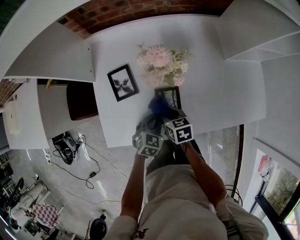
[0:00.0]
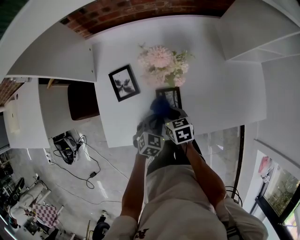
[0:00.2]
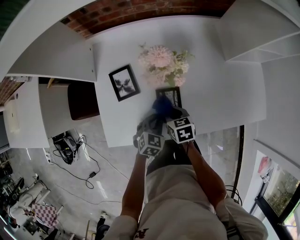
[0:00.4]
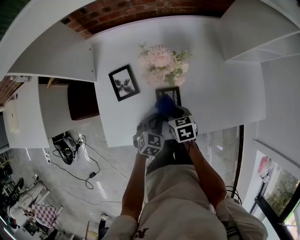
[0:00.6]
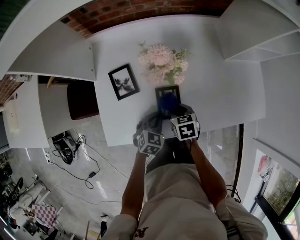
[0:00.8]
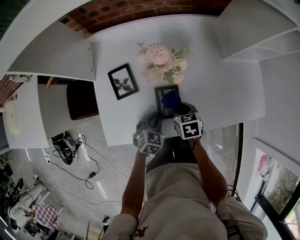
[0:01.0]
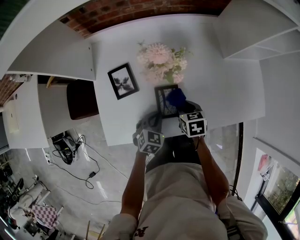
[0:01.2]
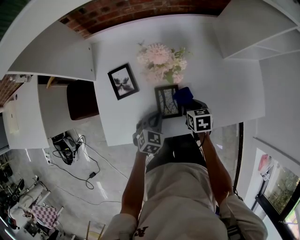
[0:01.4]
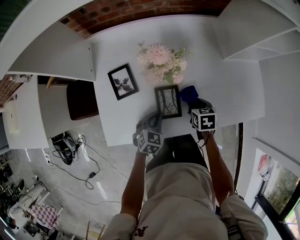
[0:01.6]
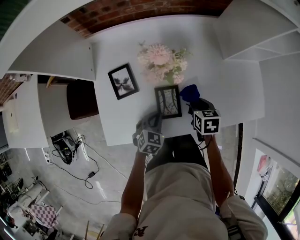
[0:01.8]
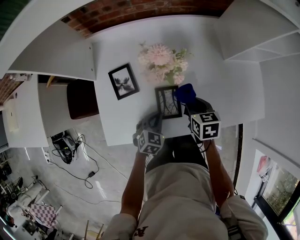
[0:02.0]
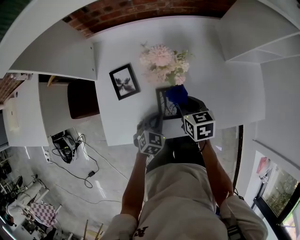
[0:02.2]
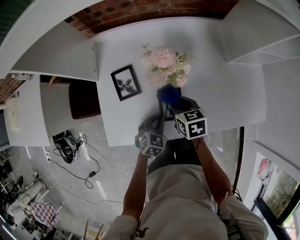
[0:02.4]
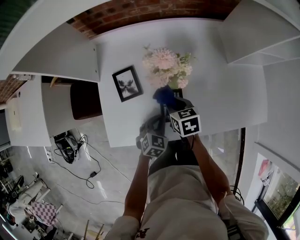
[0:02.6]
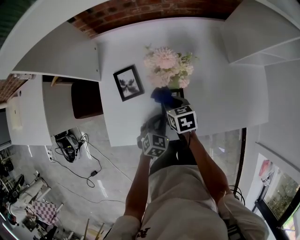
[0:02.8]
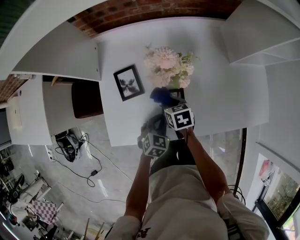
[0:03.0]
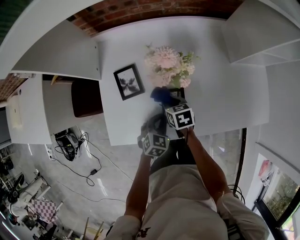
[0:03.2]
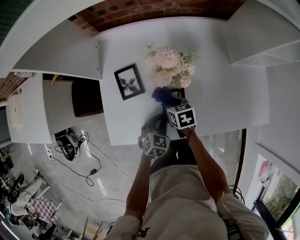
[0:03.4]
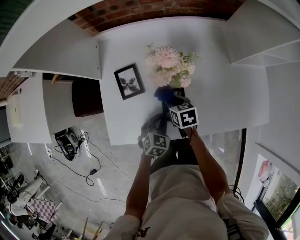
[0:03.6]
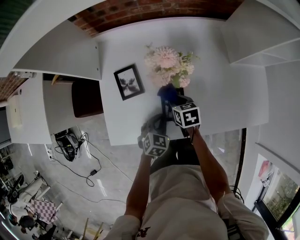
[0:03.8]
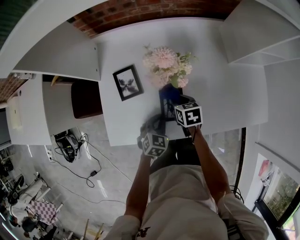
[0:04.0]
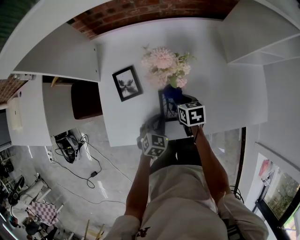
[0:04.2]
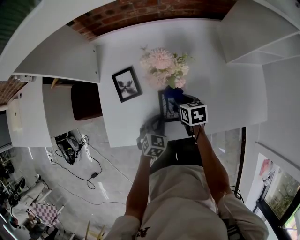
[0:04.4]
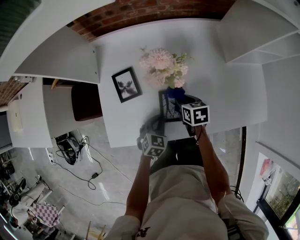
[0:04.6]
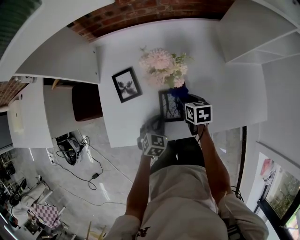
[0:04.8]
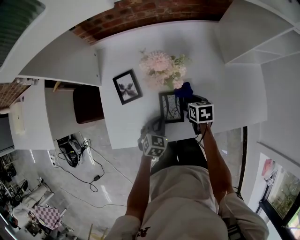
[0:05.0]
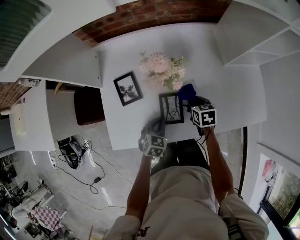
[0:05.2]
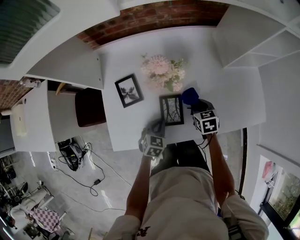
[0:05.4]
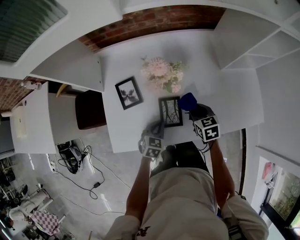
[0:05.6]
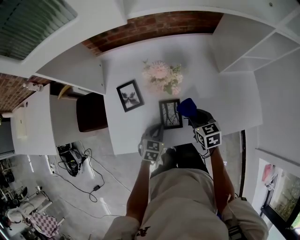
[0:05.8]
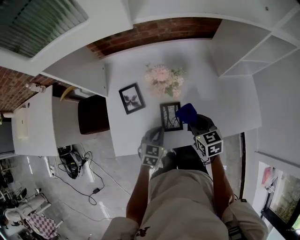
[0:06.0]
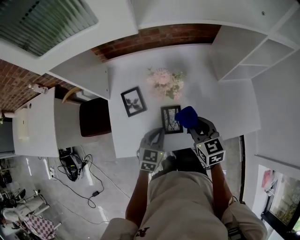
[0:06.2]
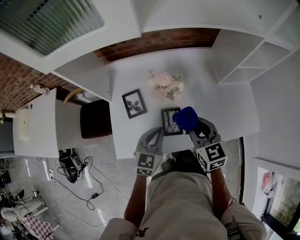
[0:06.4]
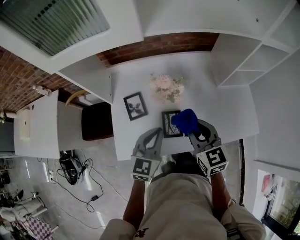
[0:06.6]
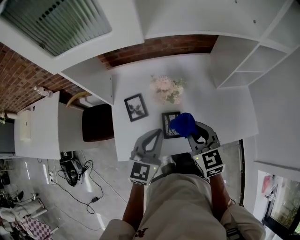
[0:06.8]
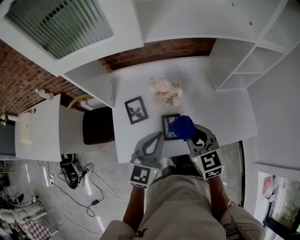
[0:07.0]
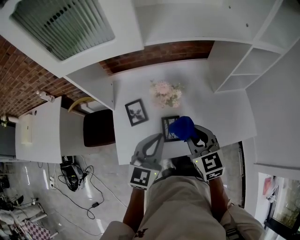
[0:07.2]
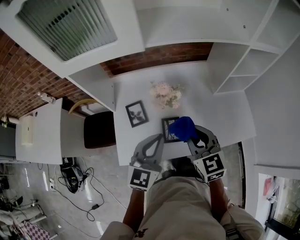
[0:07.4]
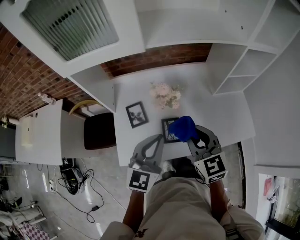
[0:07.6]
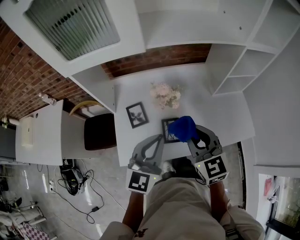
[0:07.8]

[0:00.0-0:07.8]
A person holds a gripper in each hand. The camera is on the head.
0:00.0 to 0:01.6: The right gripper shifts about 15 cm to the right.
0:01.6 to 0:03.2: The right gripper is displaced to the left by roughly 15 cm.
0:03.2 to 0:04.6: The right gripper heads to the right, covering approximately 10 cm.
0:04.6 to 0:06.2: The left gripper moves upward, approximately 10 cm; the right gripper heads upward, covering roughly 20 cm, and rotates roughly 30 degrees.
0:06.2 to 0:07.8: The grippers both shift upward by about 20 cm. The left gripper rotates about 30 degrees.

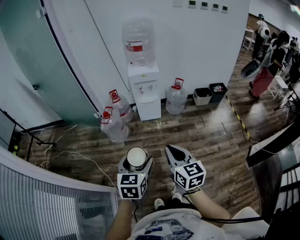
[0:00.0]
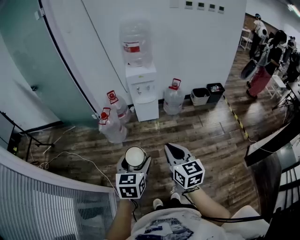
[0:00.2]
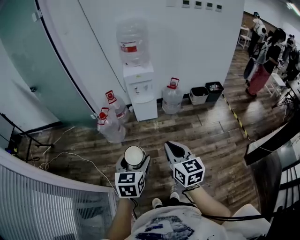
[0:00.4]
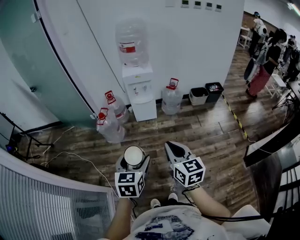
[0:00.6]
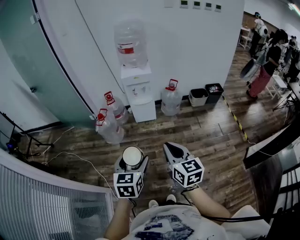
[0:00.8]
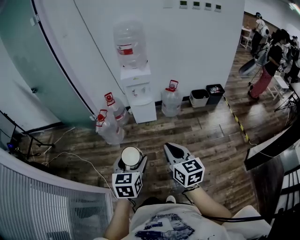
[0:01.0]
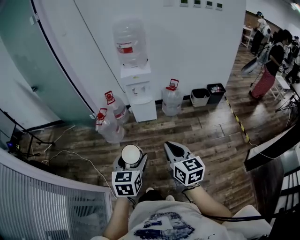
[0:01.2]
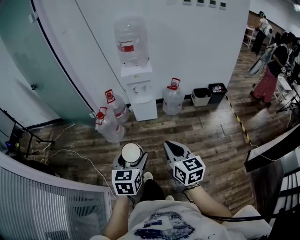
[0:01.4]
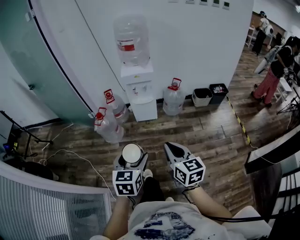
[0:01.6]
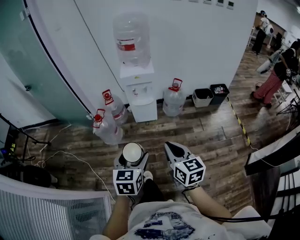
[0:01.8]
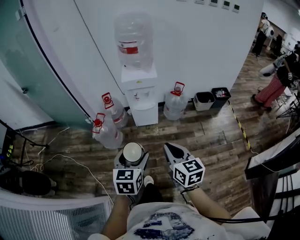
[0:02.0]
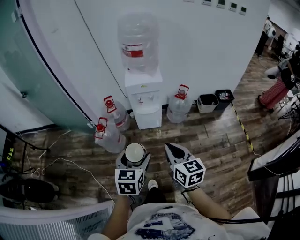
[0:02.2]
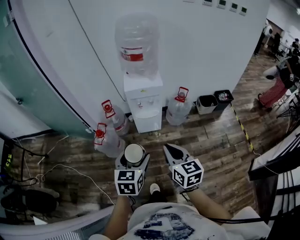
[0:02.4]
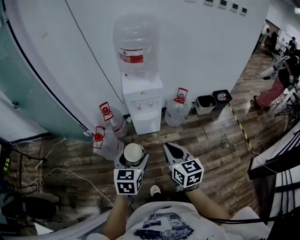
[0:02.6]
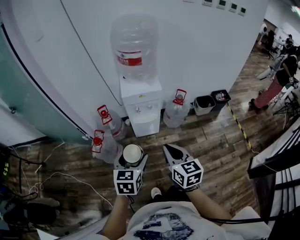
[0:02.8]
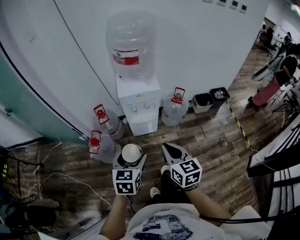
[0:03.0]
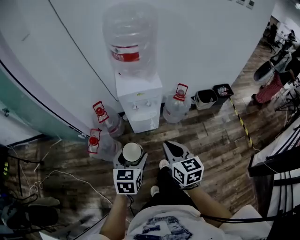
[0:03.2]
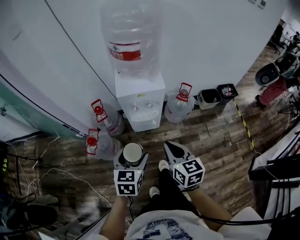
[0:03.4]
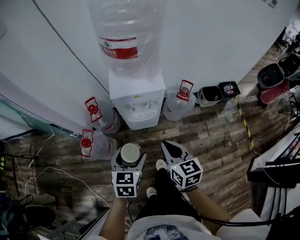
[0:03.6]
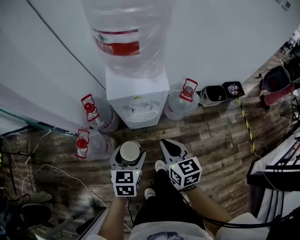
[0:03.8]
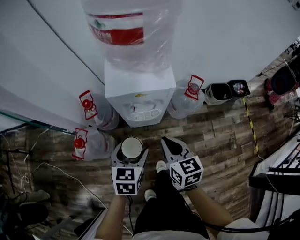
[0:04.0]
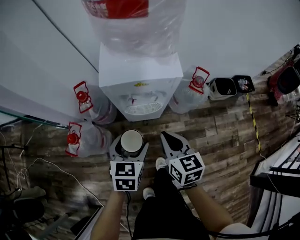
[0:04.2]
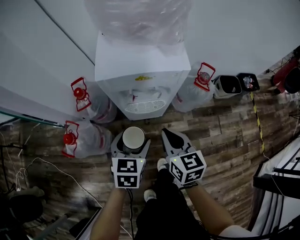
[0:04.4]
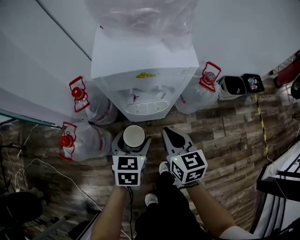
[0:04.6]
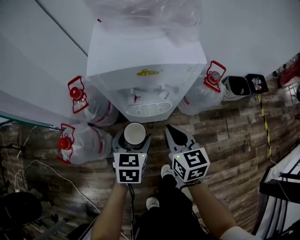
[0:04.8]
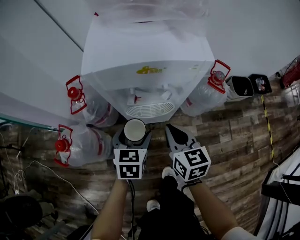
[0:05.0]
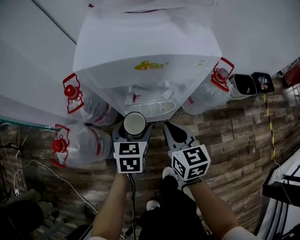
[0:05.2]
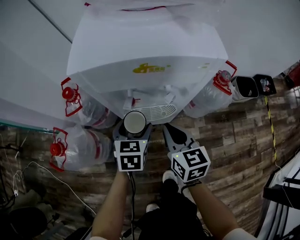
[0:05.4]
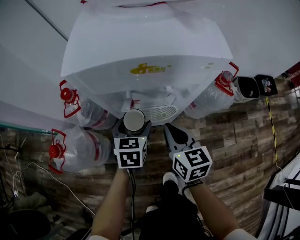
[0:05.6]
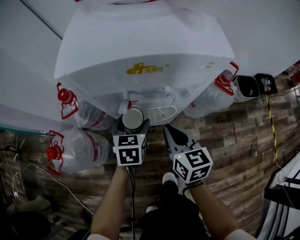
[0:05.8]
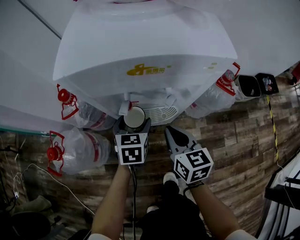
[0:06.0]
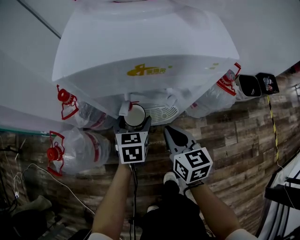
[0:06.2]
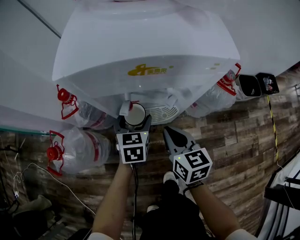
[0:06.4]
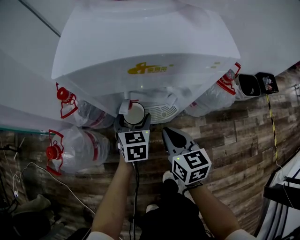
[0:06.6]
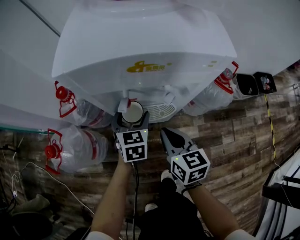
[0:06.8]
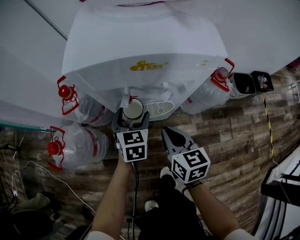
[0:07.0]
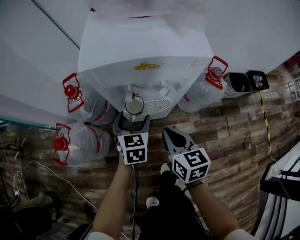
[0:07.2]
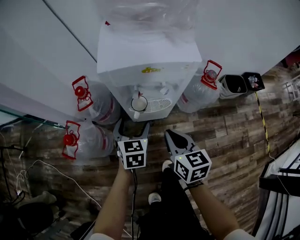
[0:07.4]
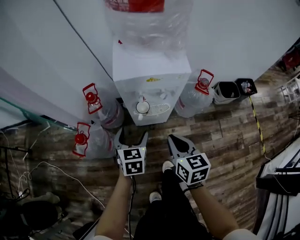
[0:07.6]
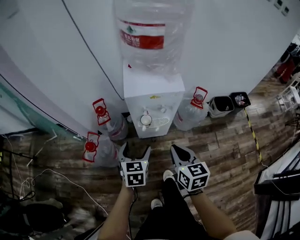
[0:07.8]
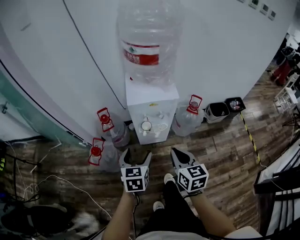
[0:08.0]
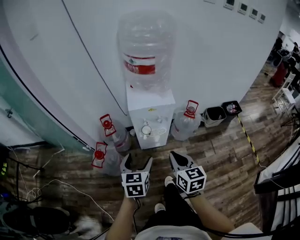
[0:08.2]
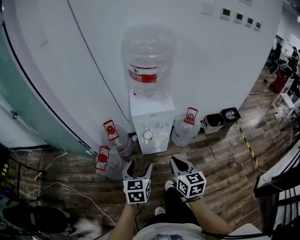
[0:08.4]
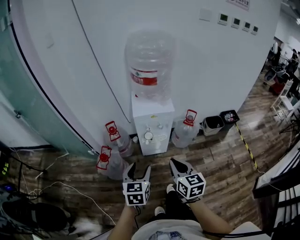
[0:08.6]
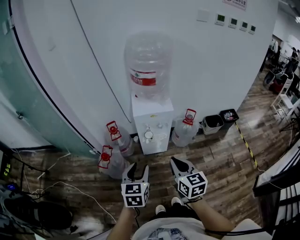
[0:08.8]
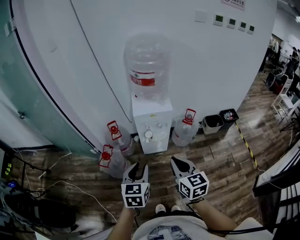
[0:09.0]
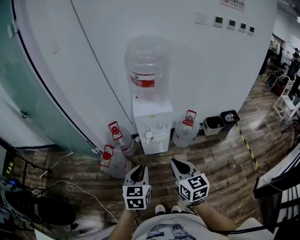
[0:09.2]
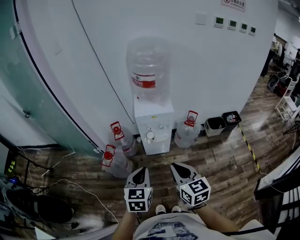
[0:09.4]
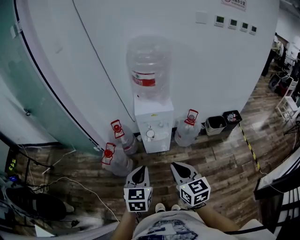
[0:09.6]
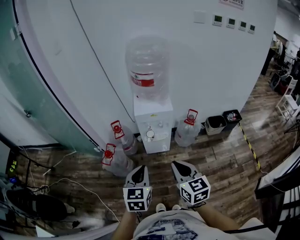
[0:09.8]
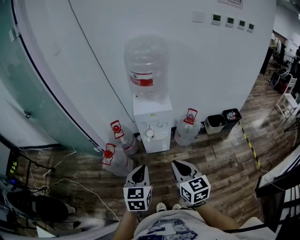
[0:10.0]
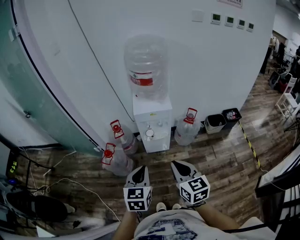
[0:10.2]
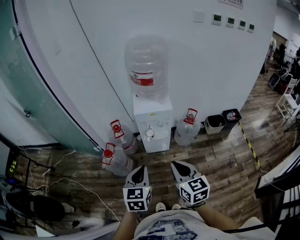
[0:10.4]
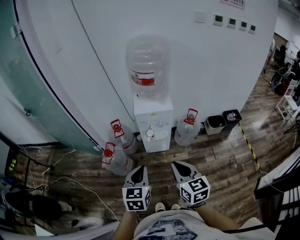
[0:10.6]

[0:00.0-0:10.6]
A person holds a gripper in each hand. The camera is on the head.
0:00.0 to 0:01.6: The right gripper moves to the right and forward, about 10 cm; the left gripper heads forward and to the right, covering approximately 10 cm.
0:01.6 to 0:03.0: Both grippers move forward, roughly 35 cm.
0:03.0 to 0:04.6: Both grippers move downward and forward, some 40 cm.
0:04.6 to 0:06.0: The two grippers go about 20 cm downward and forward.
0:06.0 to 0:07.6: The two grippers go some 25 cm upward and backward.
0:07.6 to 0:09.0: The grippers both shift upward and backward by approximately 40 cm. The left gripper closes its fingers.
0:09.0 to 0:10.6: The left gripper shifts by about 5 cm.

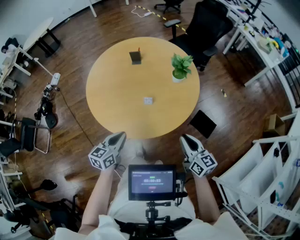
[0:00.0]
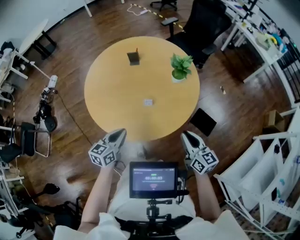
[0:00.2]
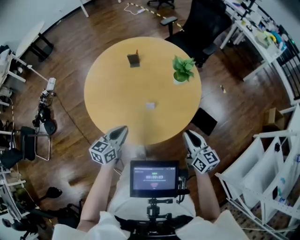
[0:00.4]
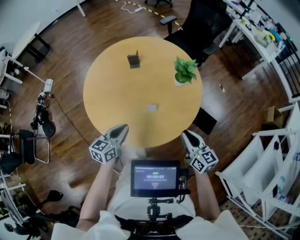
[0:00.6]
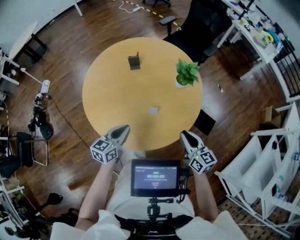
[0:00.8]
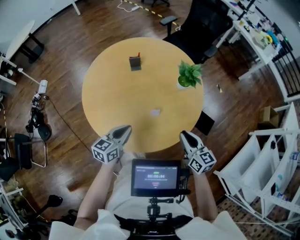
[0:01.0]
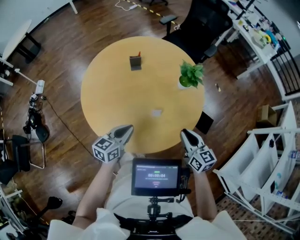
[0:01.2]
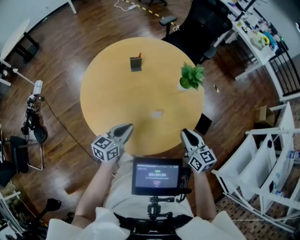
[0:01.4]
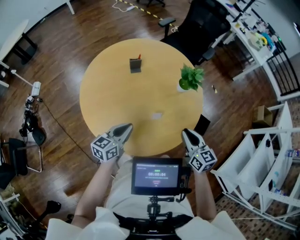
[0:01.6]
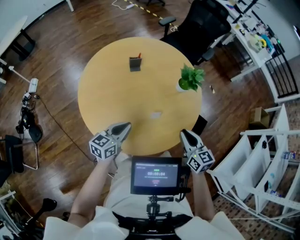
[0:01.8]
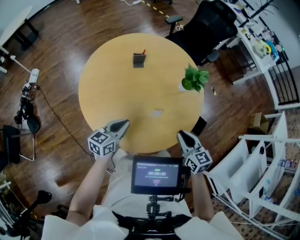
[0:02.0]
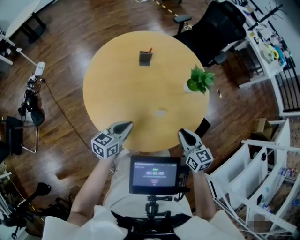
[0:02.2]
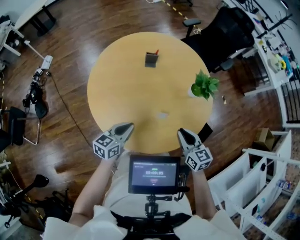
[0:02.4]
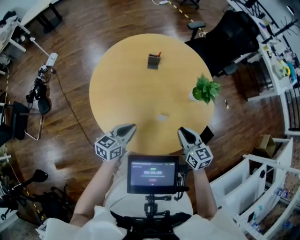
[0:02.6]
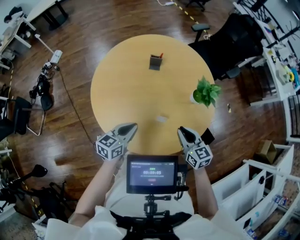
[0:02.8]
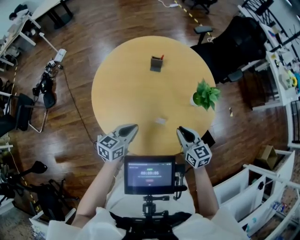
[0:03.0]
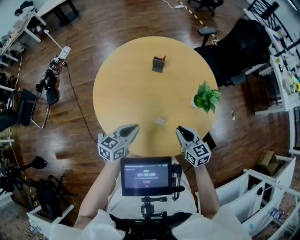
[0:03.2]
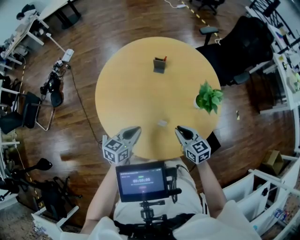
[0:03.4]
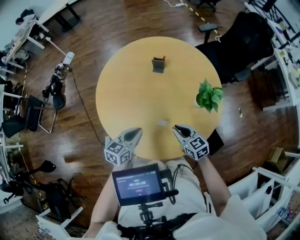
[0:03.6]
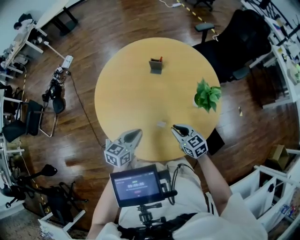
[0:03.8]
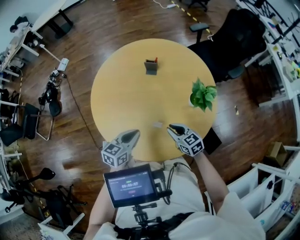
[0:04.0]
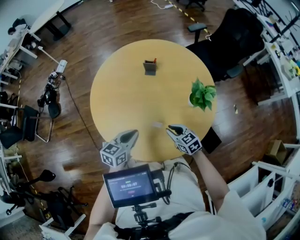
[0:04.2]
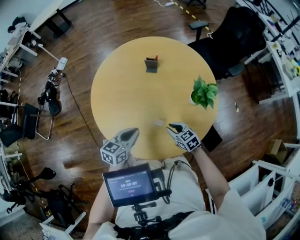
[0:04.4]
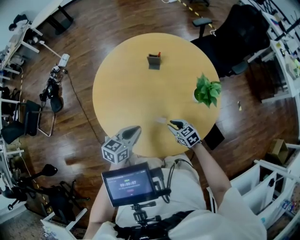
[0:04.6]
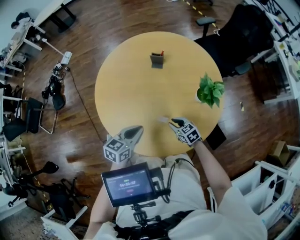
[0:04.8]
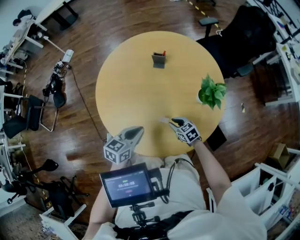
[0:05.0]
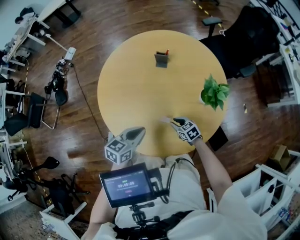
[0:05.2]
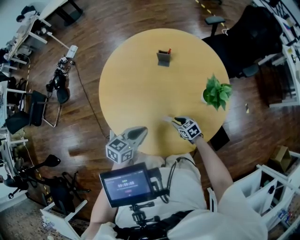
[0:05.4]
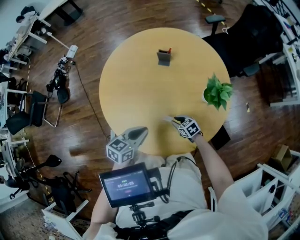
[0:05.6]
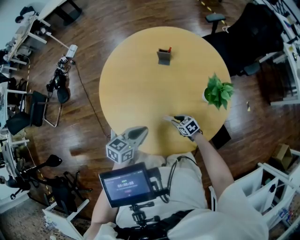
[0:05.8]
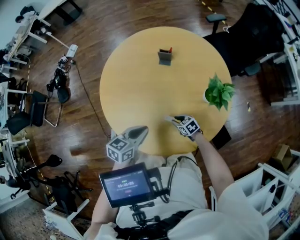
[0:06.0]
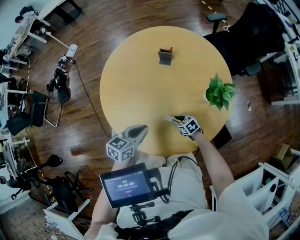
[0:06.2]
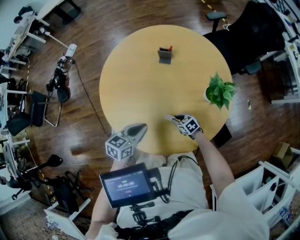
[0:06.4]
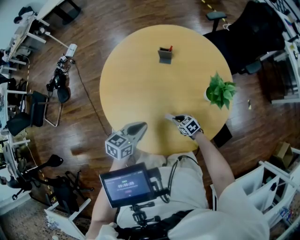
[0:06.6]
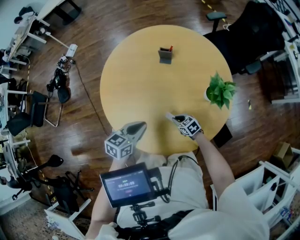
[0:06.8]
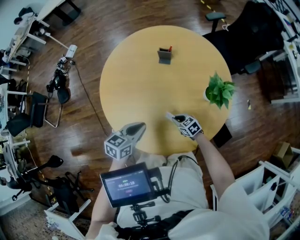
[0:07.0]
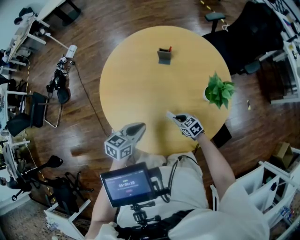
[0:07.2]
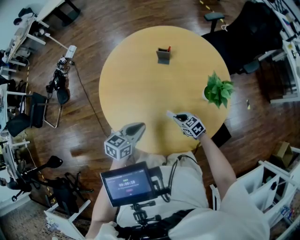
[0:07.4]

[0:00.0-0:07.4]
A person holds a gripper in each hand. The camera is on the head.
0:00.0 to 0:01.4: Both grippers travel together forward and to the left, some 20 cm.
0:01.4 to 0:03.0: The right gripper shifts roughly 10 cm forward, and rotates approximately 30 degrees.
0:03.0 to 0:04.4: The right gripper heads downward, covering some 15 cm, and swivels about 20 degrees.
0:04.4 to 0:06.0: The right gripper goes approximately 15 cm downward.
0:06.0 to 0:07.4: The right gripper moves upward, about 5 cm.
